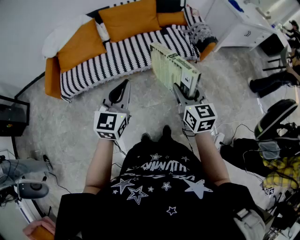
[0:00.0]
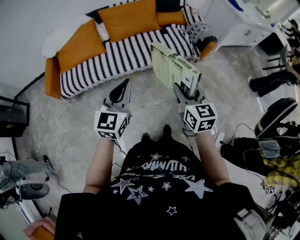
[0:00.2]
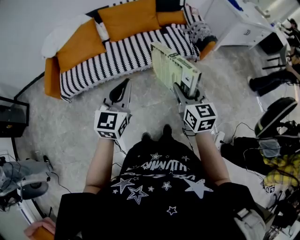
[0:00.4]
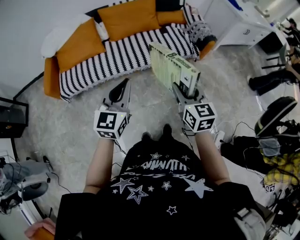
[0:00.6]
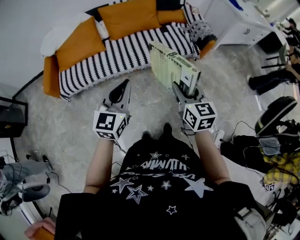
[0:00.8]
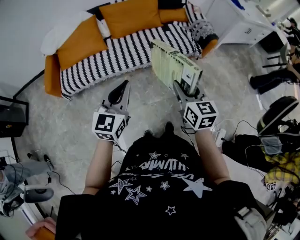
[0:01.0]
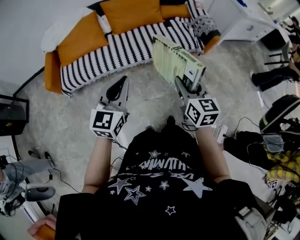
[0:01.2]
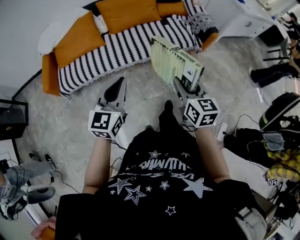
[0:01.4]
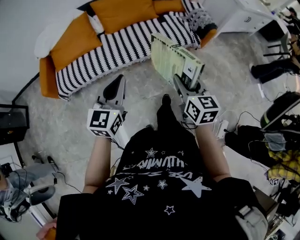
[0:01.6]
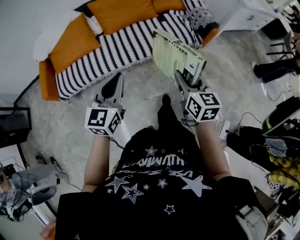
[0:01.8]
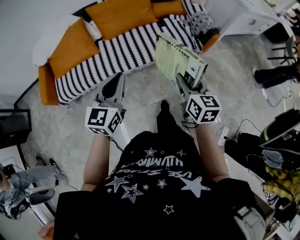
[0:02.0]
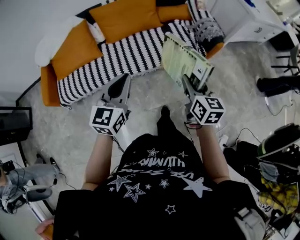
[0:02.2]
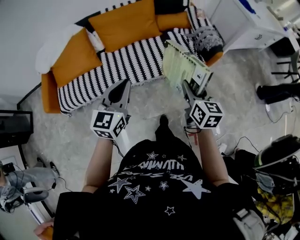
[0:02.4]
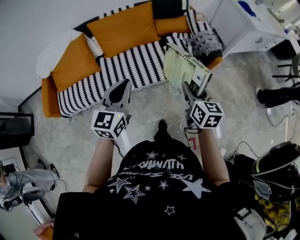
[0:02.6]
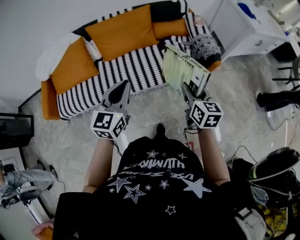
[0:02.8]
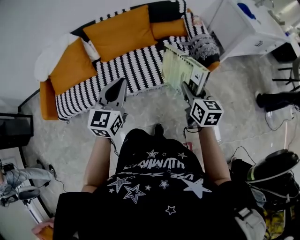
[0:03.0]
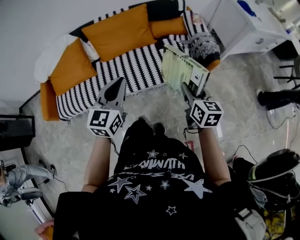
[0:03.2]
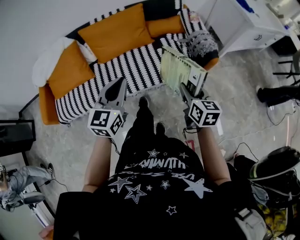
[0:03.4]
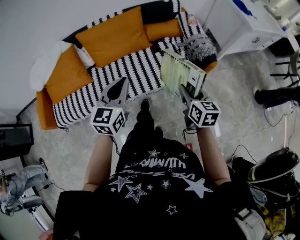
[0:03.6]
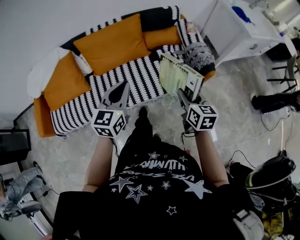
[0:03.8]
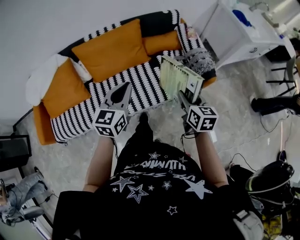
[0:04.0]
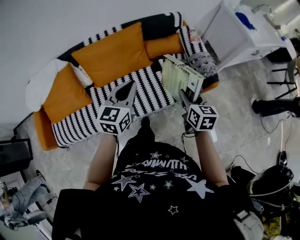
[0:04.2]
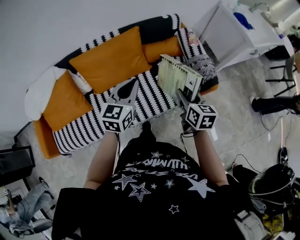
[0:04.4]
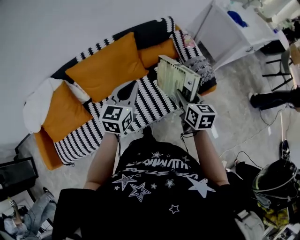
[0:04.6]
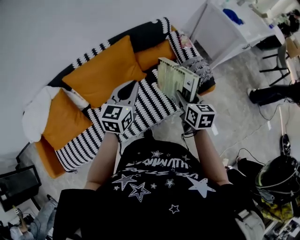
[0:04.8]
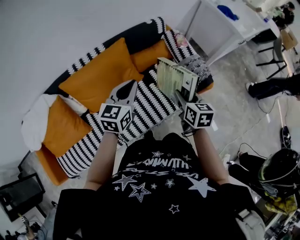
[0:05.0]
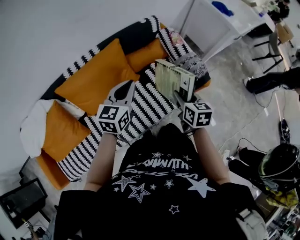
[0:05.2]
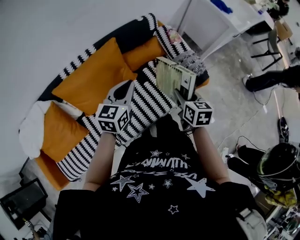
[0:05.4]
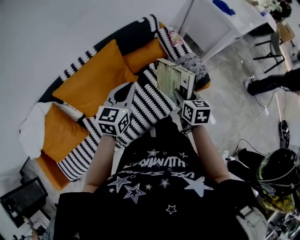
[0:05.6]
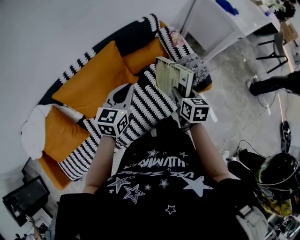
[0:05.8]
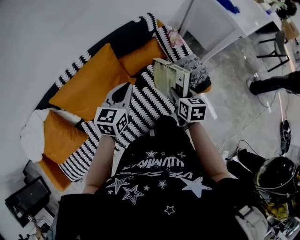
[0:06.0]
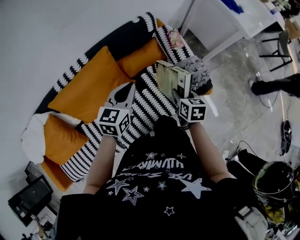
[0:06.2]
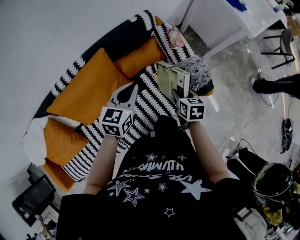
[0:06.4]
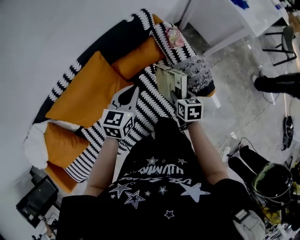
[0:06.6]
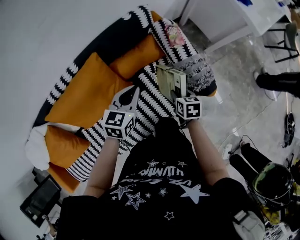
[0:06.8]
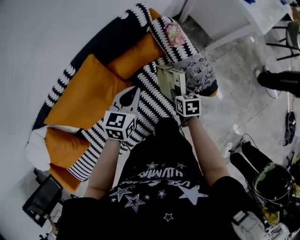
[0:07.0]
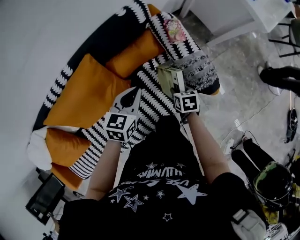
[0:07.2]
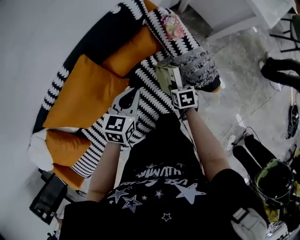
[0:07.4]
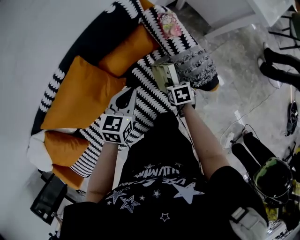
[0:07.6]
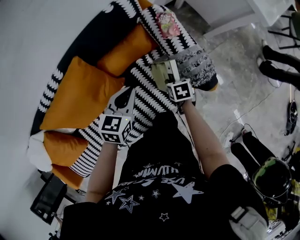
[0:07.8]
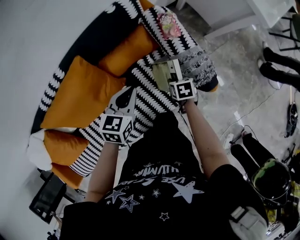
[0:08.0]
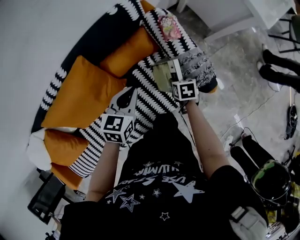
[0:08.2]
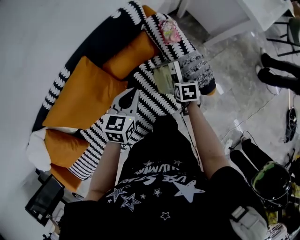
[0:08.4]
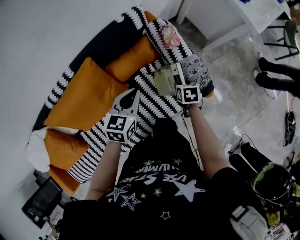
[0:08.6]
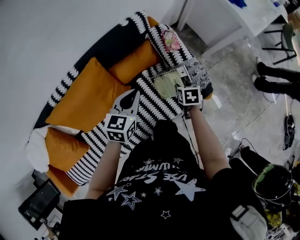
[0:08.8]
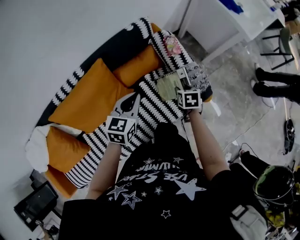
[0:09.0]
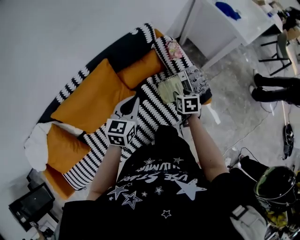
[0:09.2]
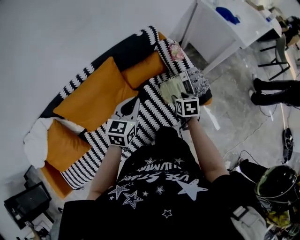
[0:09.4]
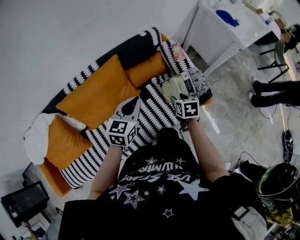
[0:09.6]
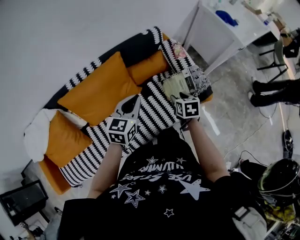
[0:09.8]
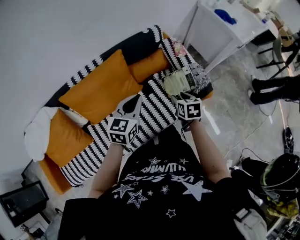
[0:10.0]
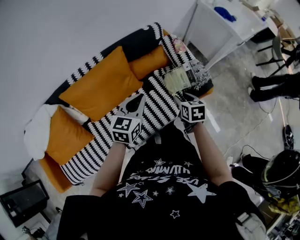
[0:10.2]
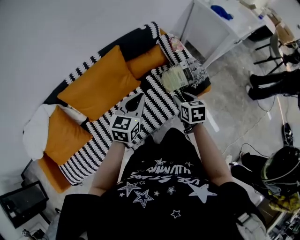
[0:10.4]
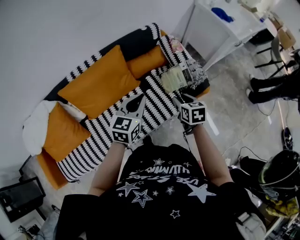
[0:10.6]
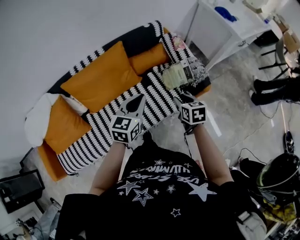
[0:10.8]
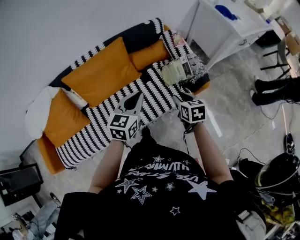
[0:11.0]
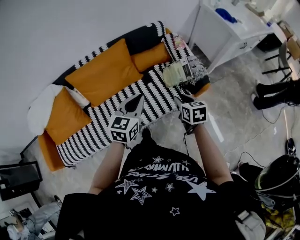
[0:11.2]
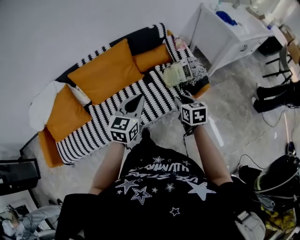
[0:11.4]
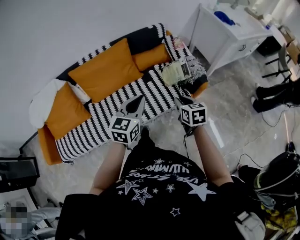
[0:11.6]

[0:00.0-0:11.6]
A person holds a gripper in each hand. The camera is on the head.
0:00.0 to 0:01.4: The left gripper travels to the left by about 5 cm.
0:01.4 to 0:02.8: Both grippers travel together forward and to the right, approximately 25 cm.
0:02.8 to 0:04.4: Both grippers travel together forward, roughly 25 cm.
0:04.4 to 0:05.8: The left gripper moves forward, about 15 cm. The right gripper moves forward and downward, about 15 cm.
0:05.8 to 0:07.2: The left gripper heads forward, downward and to the right, covering roughly 20 cm; the right gripper travels downward and forward by some 25 cm, and swivels about 30 degrees.
0:07.2 to 0:08.8: The right gripper shifts by about 10 cm.
0:08.8 to 0:10.2: The left gripper shifts roughly 20 cm backward and upward. The right gripper shifts some 25 cm backward, upward and to the left.
0:10.2 to 0:11.6: The grippers both shift backward and to the right by roughly 15 cm. The right gripper closes.

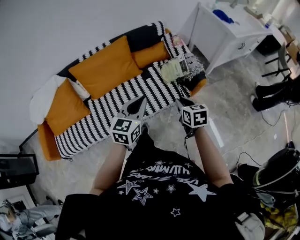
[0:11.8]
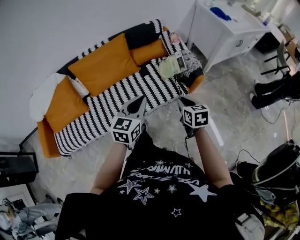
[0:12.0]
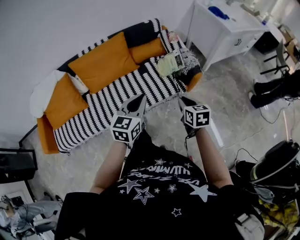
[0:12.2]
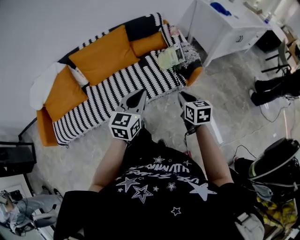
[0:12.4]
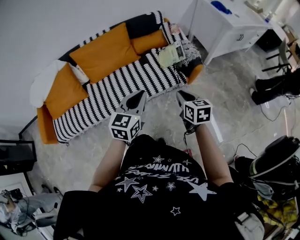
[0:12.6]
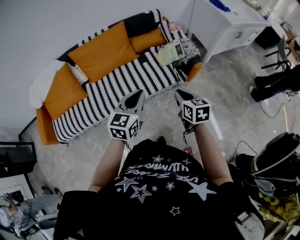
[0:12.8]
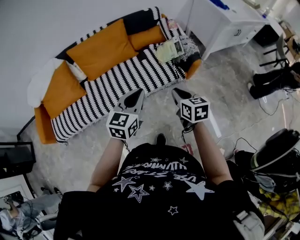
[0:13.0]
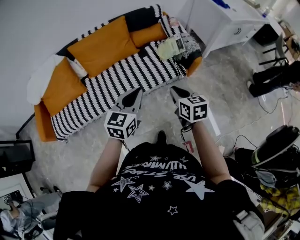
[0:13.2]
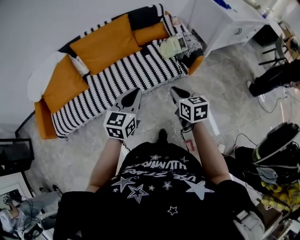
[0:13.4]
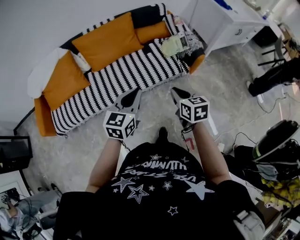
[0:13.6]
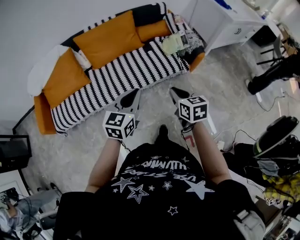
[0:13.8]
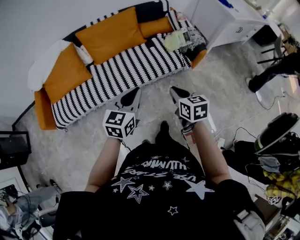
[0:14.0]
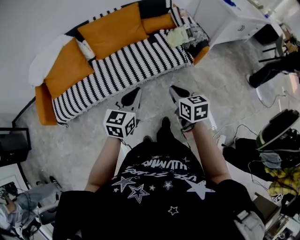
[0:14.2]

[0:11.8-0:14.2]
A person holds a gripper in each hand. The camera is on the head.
0:11.8 to 0:13.0: Both grippers move backward, approximately 10 cm.
0:13.0 to 0:14.2: The grippers both shift to the left and backward by some 20 cm.

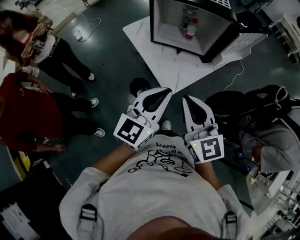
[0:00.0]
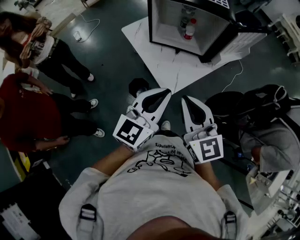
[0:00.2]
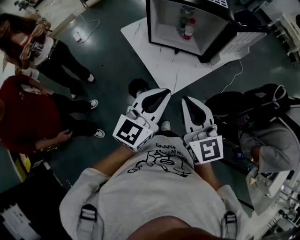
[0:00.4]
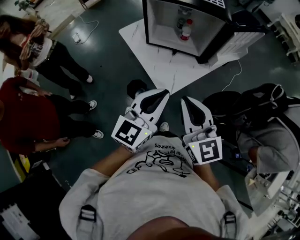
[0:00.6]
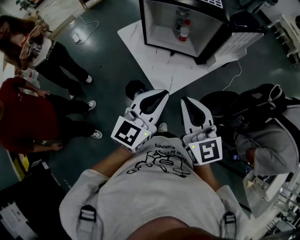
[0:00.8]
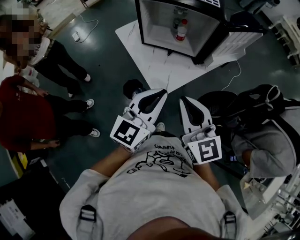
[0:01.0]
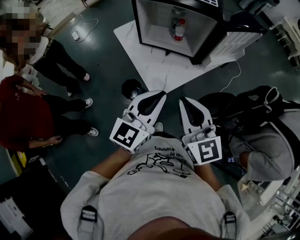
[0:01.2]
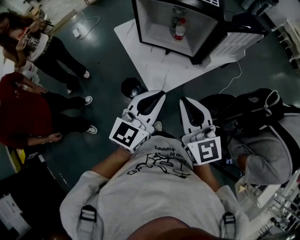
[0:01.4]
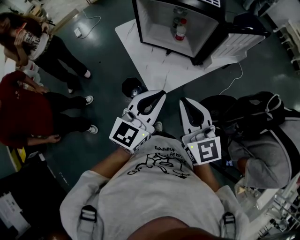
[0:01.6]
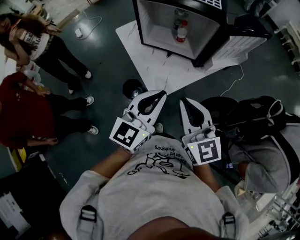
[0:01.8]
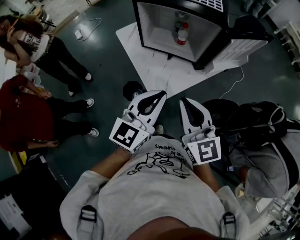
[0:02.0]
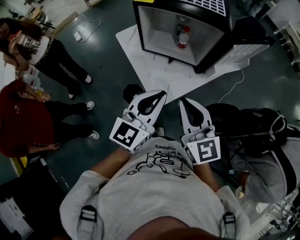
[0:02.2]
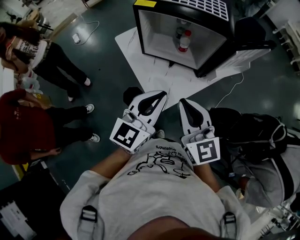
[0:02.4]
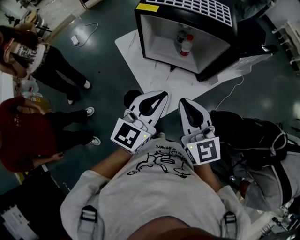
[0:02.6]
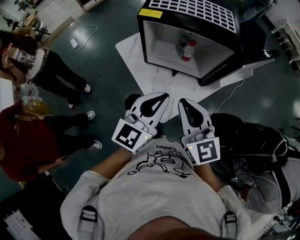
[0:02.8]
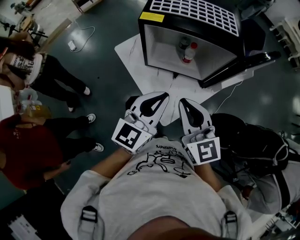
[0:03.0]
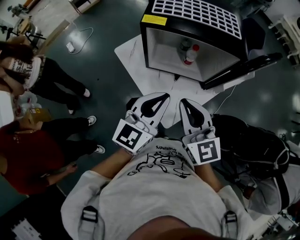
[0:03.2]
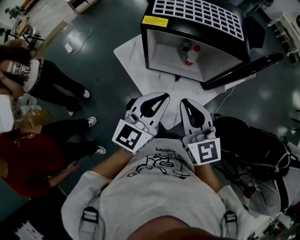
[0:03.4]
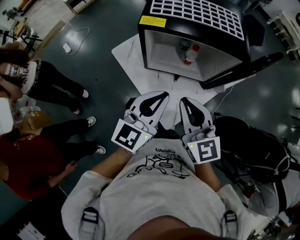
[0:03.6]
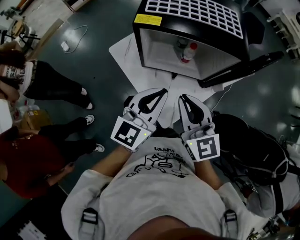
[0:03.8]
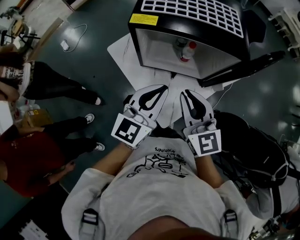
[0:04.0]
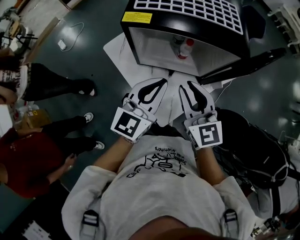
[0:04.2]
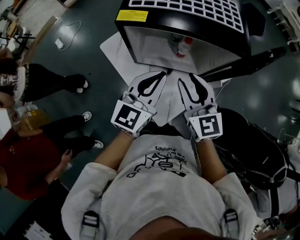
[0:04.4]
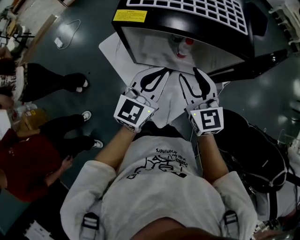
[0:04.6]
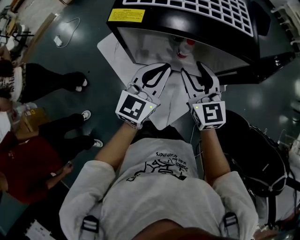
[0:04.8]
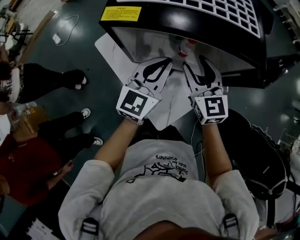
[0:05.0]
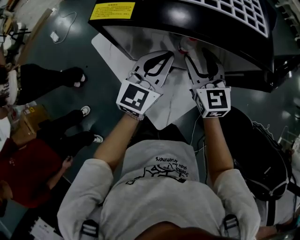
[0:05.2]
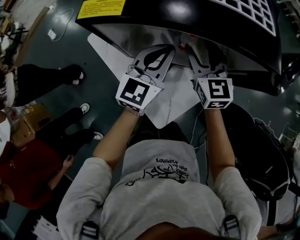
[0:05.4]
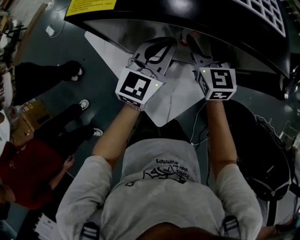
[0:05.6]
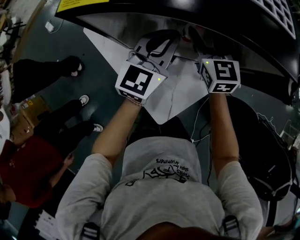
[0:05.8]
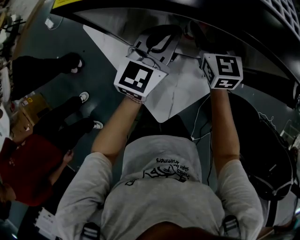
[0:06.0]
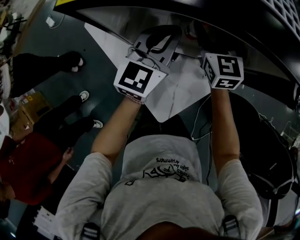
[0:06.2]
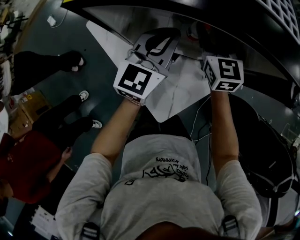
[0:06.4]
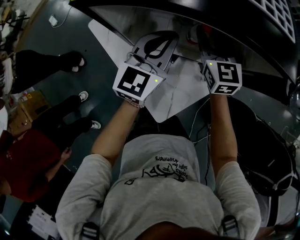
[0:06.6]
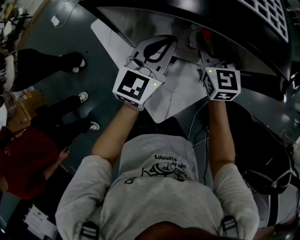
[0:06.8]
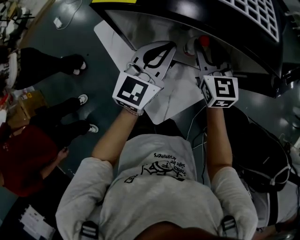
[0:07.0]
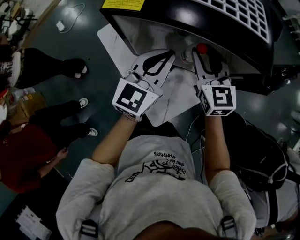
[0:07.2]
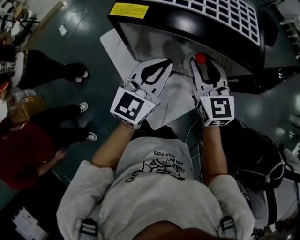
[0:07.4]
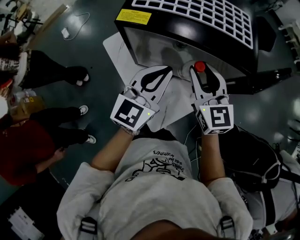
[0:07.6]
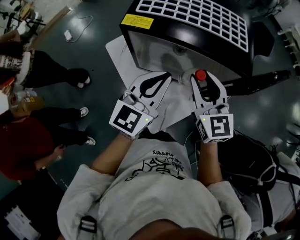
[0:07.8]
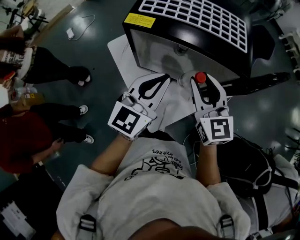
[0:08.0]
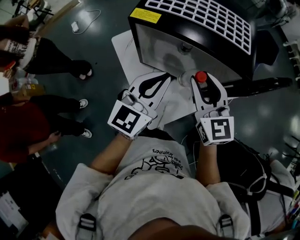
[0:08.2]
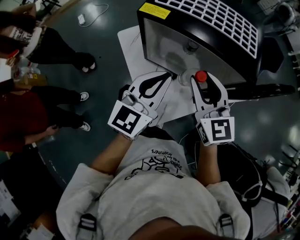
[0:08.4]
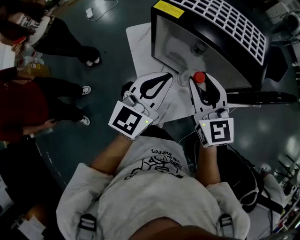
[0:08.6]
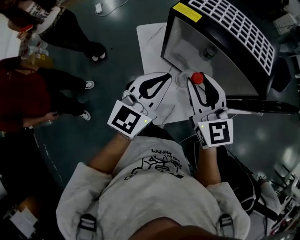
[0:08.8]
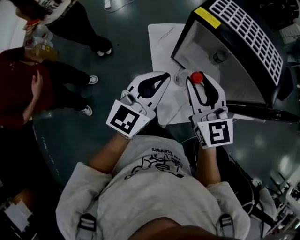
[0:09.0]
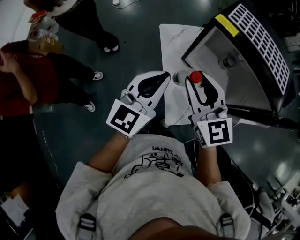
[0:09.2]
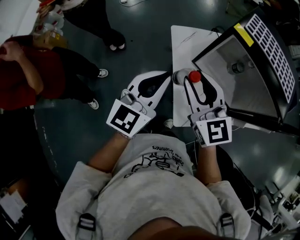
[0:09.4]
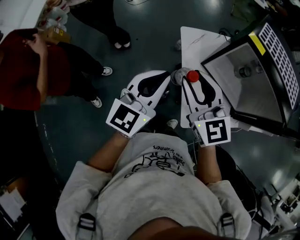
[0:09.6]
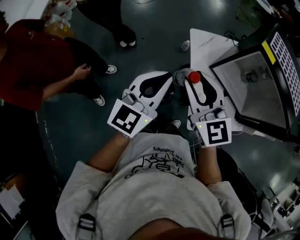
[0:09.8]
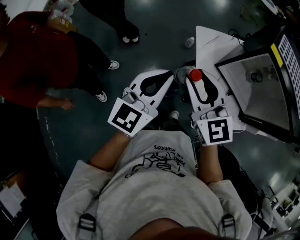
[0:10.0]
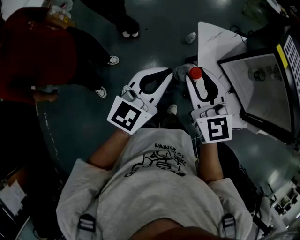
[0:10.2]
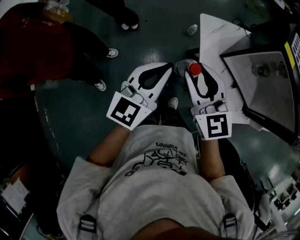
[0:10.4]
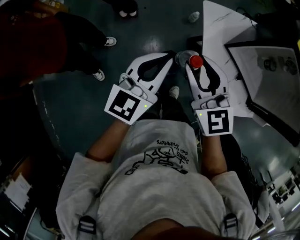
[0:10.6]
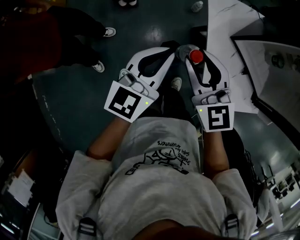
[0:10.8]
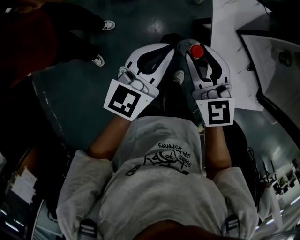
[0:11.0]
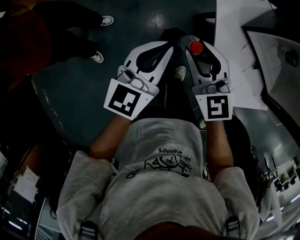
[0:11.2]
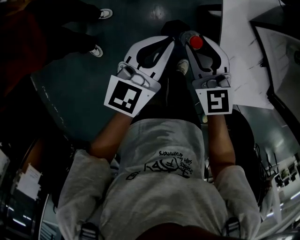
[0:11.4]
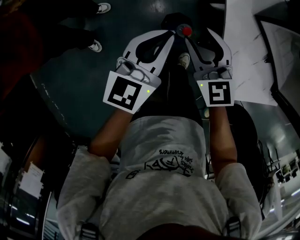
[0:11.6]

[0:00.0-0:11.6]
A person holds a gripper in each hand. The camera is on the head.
0:00.0 to 0:01.4: Both grippers move to the right, some 10 cm.
0:01.4 to 0:02.8: Both grippers travel together forward, roughly 15 cm.
0:02.8 to 0:04.4: The grippers both shift forward by some 15 cm. The right gripper opens.
0:04.4 to 0:05.8: Both grippers move forward and downward, some 20 cm. The right gripper opens.
0:05.8 to 0:07.2: Both grippers travel together upward and backward, roughly 15 cm. The right gripper closes its fingers.
0:07.2 to 0:08.8: The right gripper goes roughly 15 cm backward, upward and to the left, and swivels some 30 degrees, while the left gripper heads backward and upward, covering some 15 cm.
0:08.8 to 0:10.2: The grippers both shift to the left by about 30 cm.
0:10.2 to 0:11.6: Both grippers travel together downward, some 25 cm.
